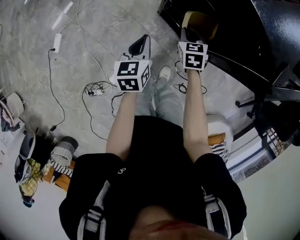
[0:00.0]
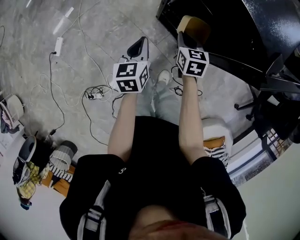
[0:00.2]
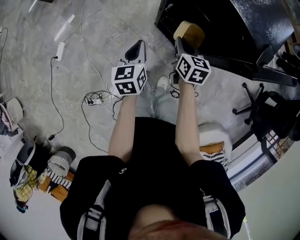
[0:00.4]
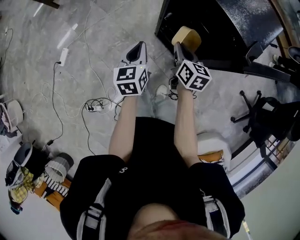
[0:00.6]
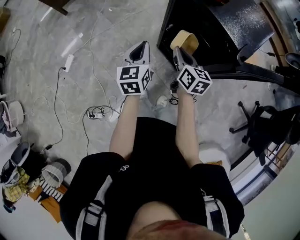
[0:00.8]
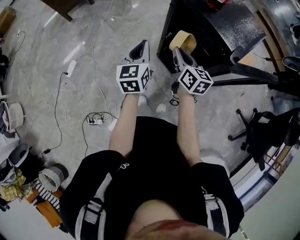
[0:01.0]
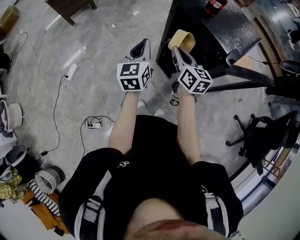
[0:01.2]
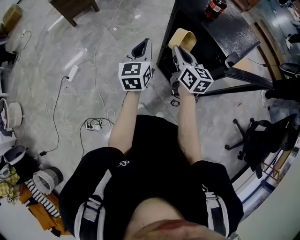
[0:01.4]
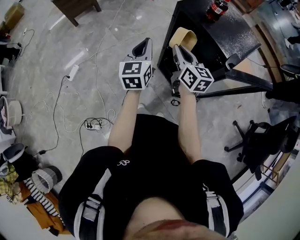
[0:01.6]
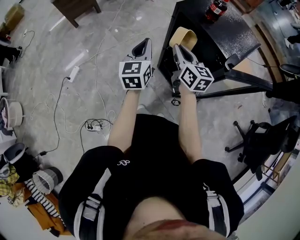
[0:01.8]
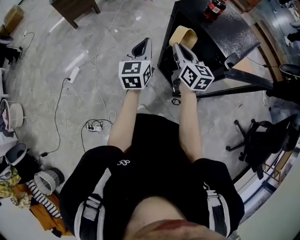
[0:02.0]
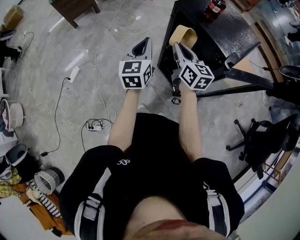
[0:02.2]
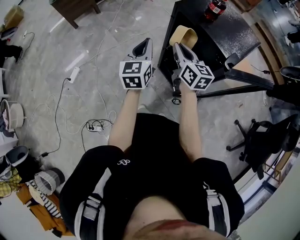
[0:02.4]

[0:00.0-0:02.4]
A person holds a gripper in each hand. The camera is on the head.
0:00.0 to 0:01.2: Both grippers move upward, about 25 cm. The left gripper rotates roughly 30 degrees. Meanwhile the right gripper tips its fingers upward by about 40 degrees.
0:01.2 to 0:02.4: The grippers move only a little.

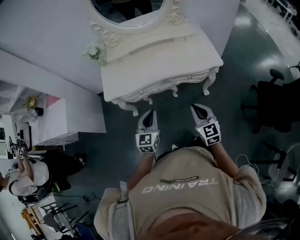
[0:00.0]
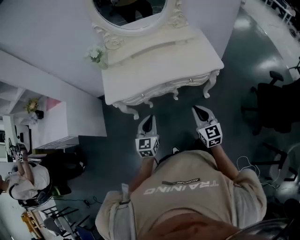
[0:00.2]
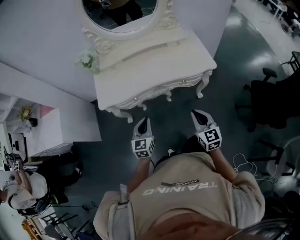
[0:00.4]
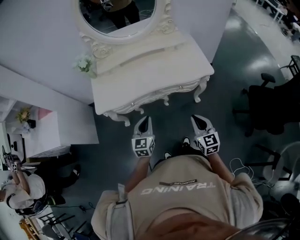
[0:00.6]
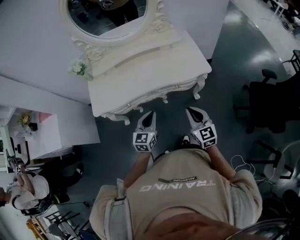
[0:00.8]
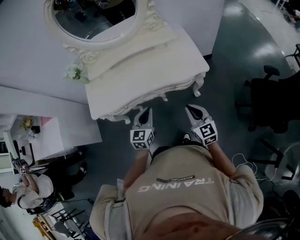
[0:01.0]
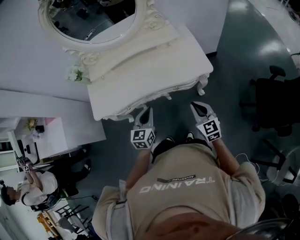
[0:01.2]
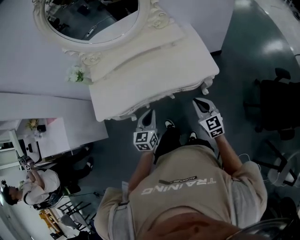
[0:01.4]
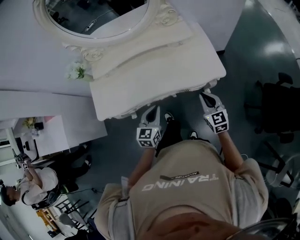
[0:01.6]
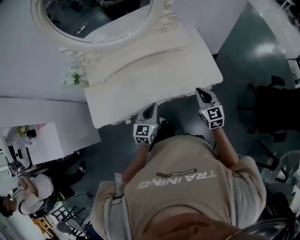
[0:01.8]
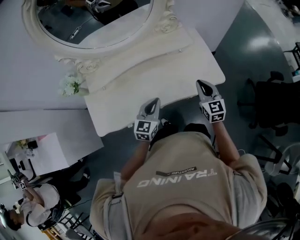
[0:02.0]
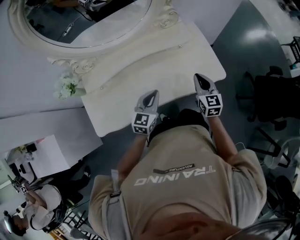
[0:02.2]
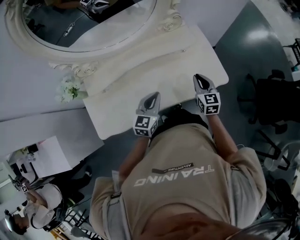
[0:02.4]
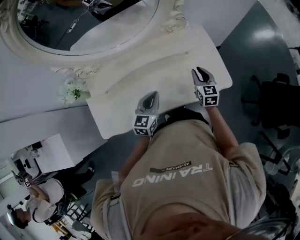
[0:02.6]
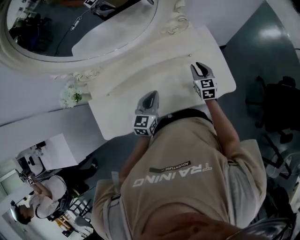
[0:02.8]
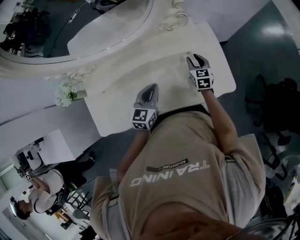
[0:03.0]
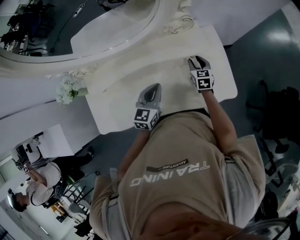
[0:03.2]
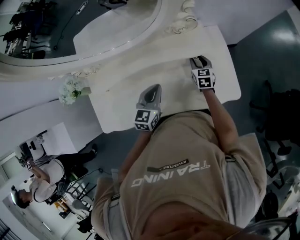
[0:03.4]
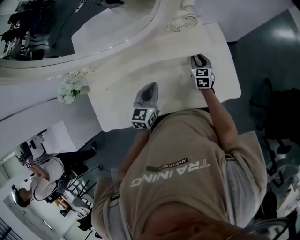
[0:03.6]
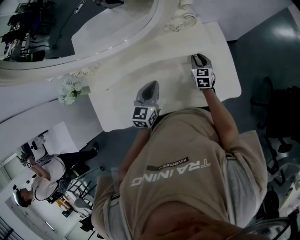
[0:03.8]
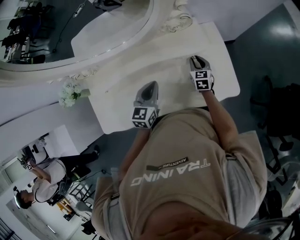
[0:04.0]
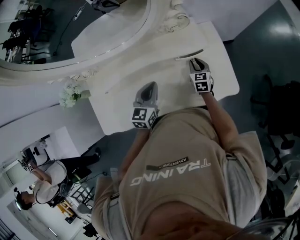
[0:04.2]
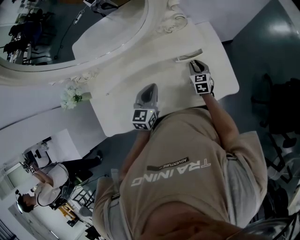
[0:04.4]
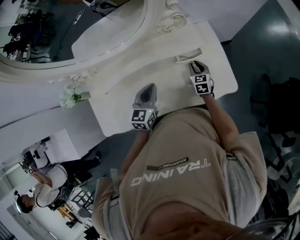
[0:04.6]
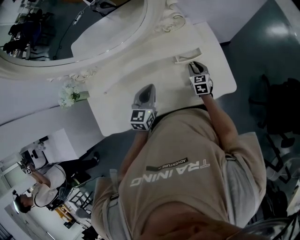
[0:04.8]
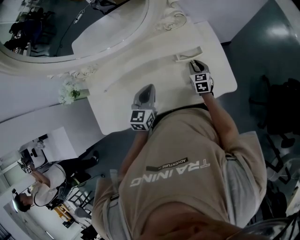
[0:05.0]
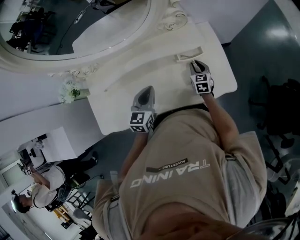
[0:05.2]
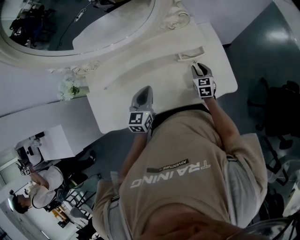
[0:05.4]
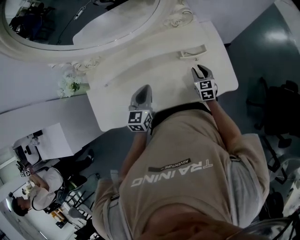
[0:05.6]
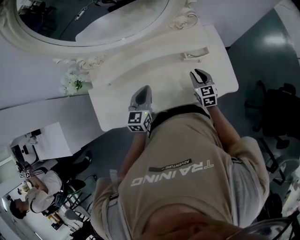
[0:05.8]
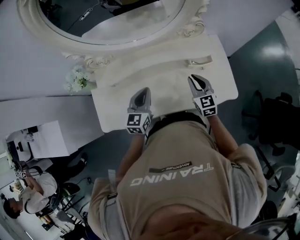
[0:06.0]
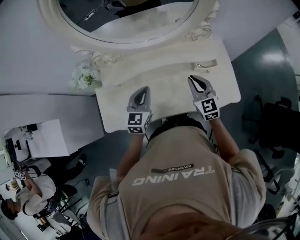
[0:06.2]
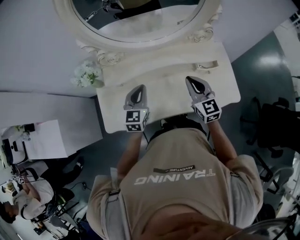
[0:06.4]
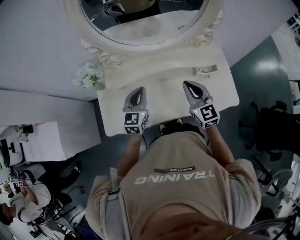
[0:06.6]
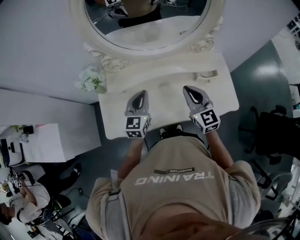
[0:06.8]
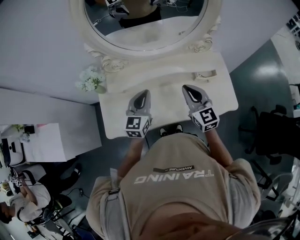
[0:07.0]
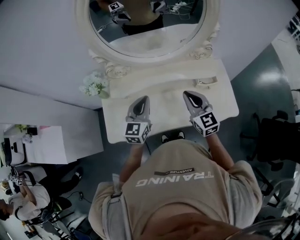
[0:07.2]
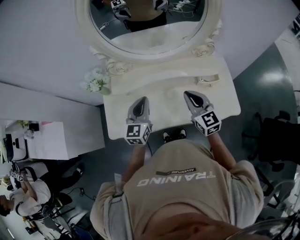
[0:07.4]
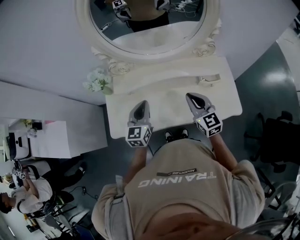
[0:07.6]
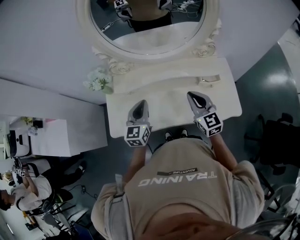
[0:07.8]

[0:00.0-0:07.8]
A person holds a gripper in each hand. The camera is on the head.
0:00.0 to 0:01.6: Both grippers travel together forward and to the right, approximately 25 cm.
0:01.6 to 0:03.2: The two grippers go some 35 cm forward. The right gripper opens.
0:03.2 to 0:04.6: There are only small adjustments of the grippers.
0:04.6 to 0:06.2: The right gripper moves upward, to the left and backward, some 30 cm, and swivels some 30 degrees; the left gripper travels to the left and upward by approximately 15 cm.
0:06.2 to 0:07.8: The left gripper moves to the left and upward, about 5 cm; the right gripper travels upward by about 5 cm.

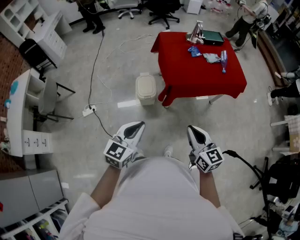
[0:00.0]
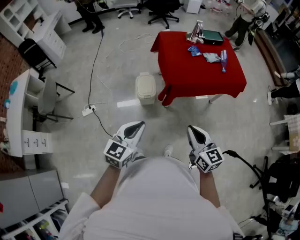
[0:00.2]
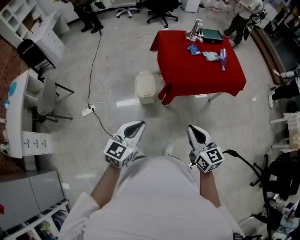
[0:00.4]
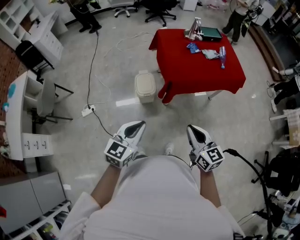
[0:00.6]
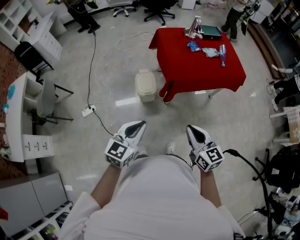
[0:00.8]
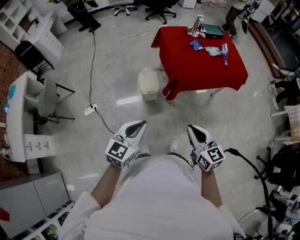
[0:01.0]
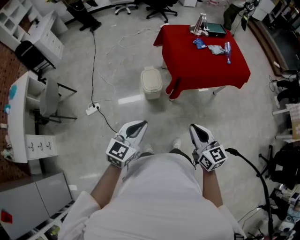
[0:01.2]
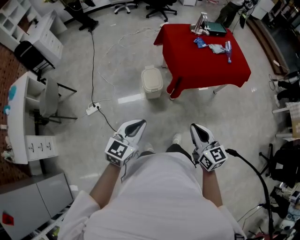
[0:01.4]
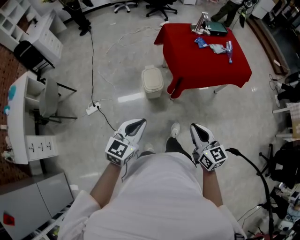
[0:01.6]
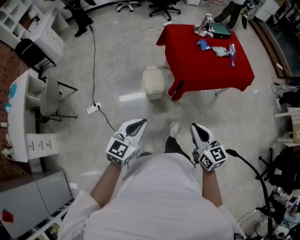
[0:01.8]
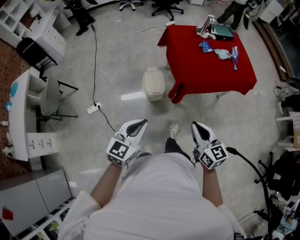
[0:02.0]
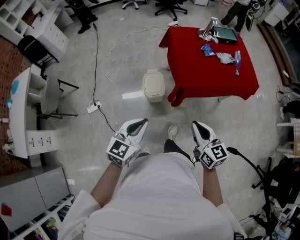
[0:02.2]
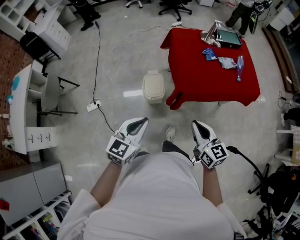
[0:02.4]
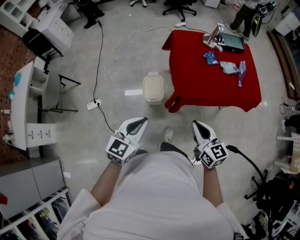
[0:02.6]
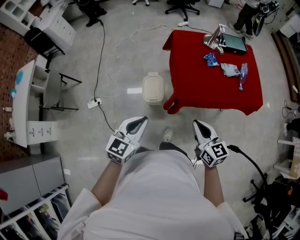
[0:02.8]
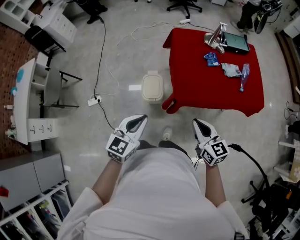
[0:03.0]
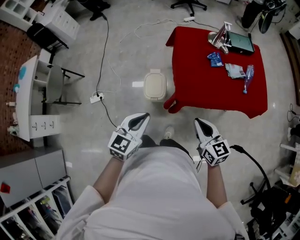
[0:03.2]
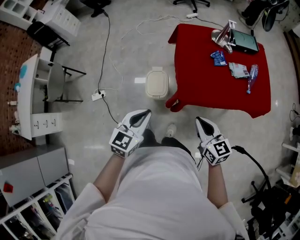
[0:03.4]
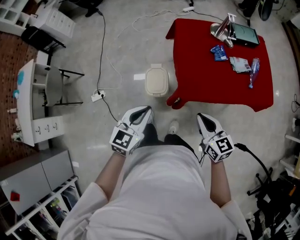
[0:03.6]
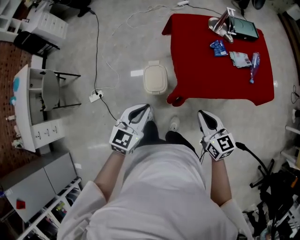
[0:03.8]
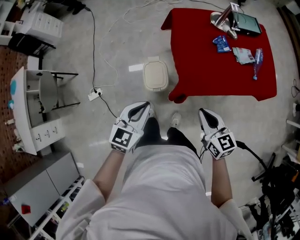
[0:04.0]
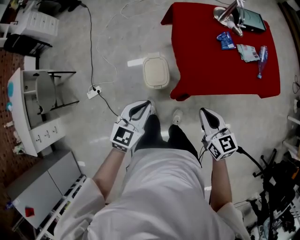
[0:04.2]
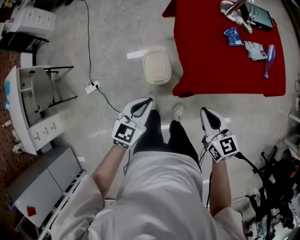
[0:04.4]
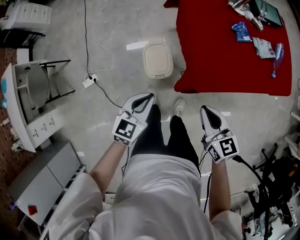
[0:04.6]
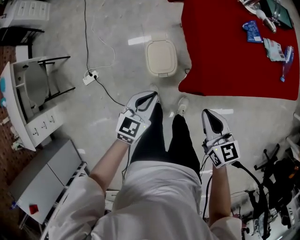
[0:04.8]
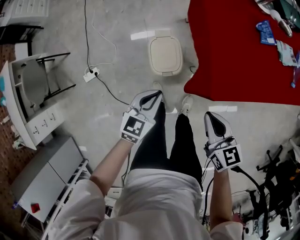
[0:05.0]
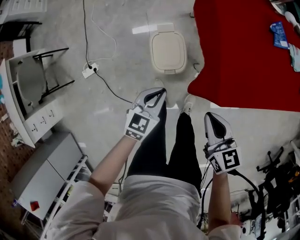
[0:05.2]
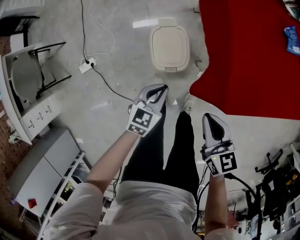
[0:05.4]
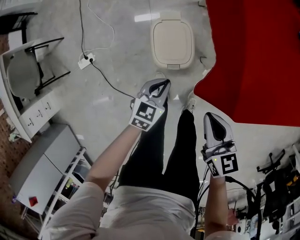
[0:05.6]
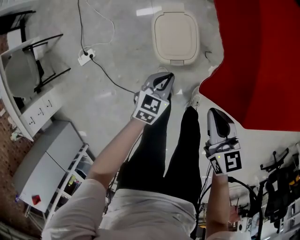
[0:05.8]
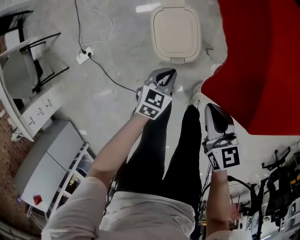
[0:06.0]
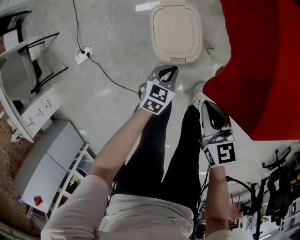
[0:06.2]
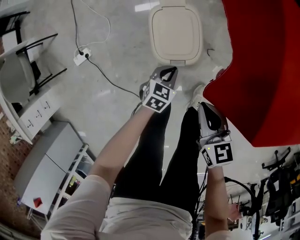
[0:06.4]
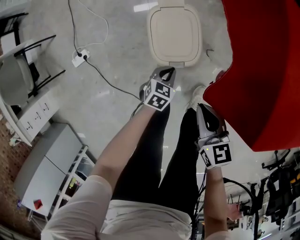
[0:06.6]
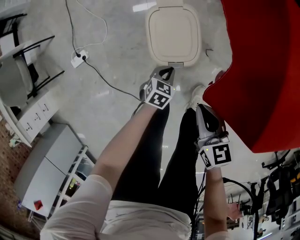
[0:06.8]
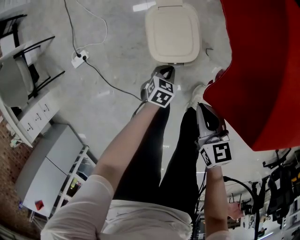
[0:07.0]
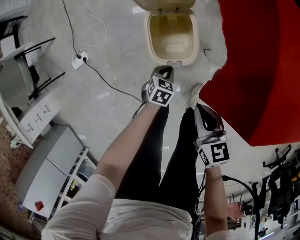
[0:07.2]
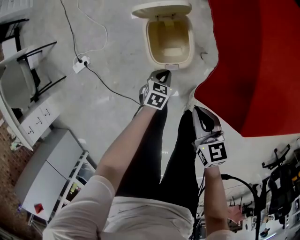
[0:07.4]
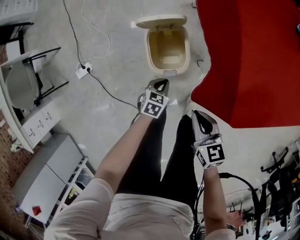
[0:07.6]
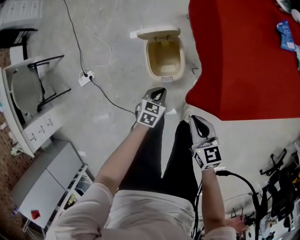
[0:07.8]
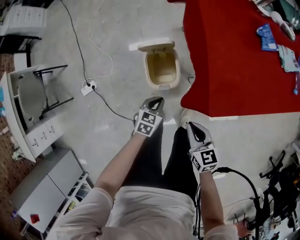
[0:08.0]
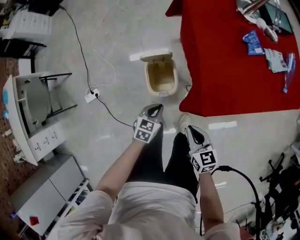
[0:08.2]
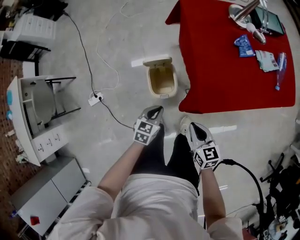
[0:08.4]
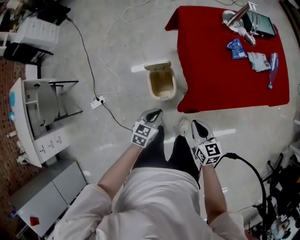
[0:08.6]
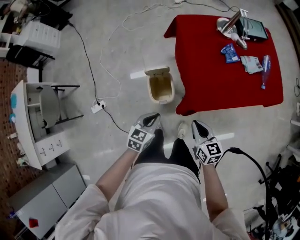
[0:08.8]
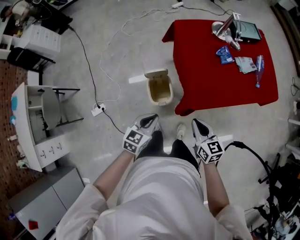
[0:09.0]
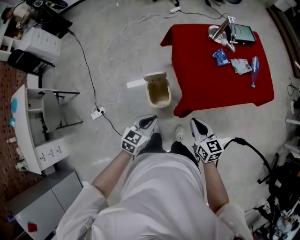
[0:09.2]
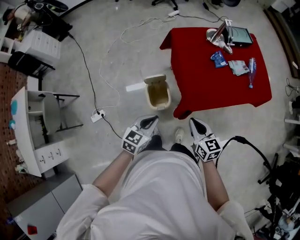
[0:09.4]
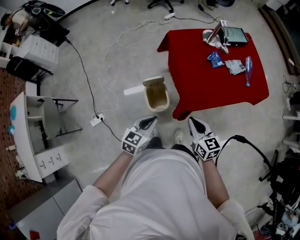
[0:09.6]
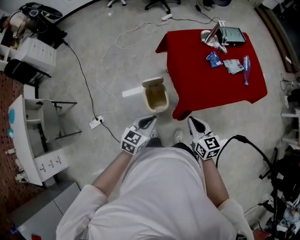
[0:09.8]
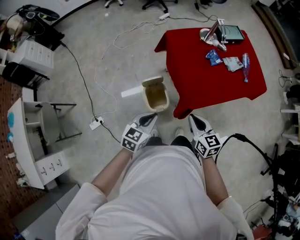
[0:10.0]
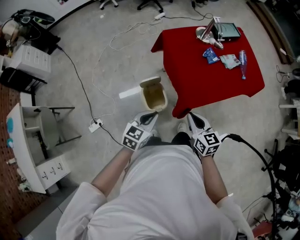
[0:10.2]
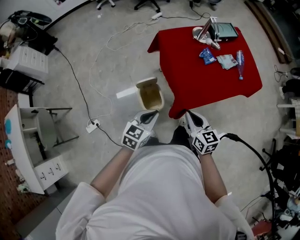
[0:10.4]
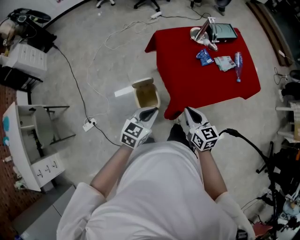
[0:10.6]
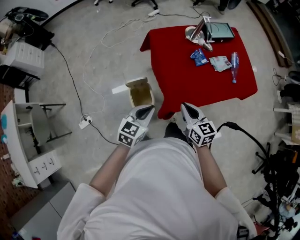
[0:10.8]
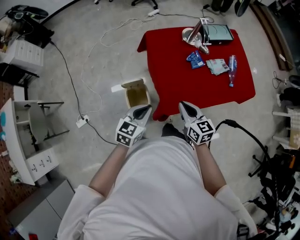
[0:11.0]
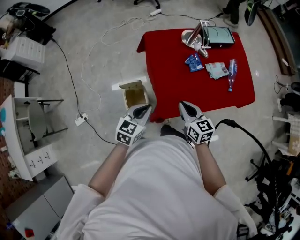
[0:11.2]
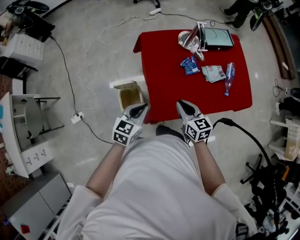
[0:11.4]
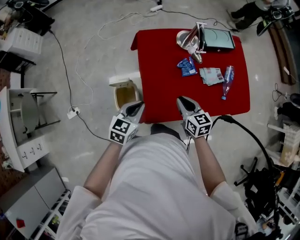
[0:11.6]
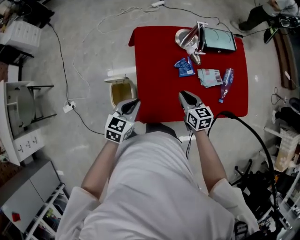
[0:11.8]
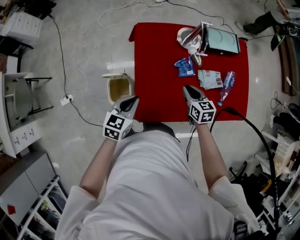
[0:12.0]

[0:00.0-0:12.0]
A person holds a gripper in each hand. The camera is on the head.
0:00.0 to 0:01.6: Both grippers move to the left, about 10 cm.
0:01.6 to 0:03.0: Both grippers travel together forward and to the right, some 30 cm.
0:03.0 to 0:04.4: The left gripper travels downward and forward by some 20 cm, while the right gripper heads downward, forward and to the left, covering about 15 cm.
0:04.4 to 0:06.0: Both grippers travel together downward, roughly 40 cm.
0:06.0 to 0:07.6: The left gripper goes about 5 cm downward.
0:07.6 to 0:09.0: The left gripper moves upward, approximately 50 cm, and rotates roughly 30 degrees, while the right gripper travels upward by roughly 30 cm.
0:09.0 to 0:10.4: Both grippers travel together upward, roughly 5 cm.
0:10.4 to 0:12.0: The left gripper travels forward and to the right by some 25 cm, and changes its angle by about 20 degrees. Meanwhile the right gripper moves forward, to the right and downward, approximately 40 cm.

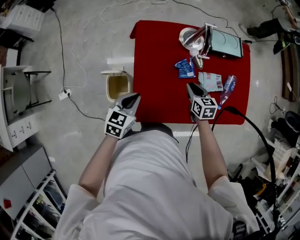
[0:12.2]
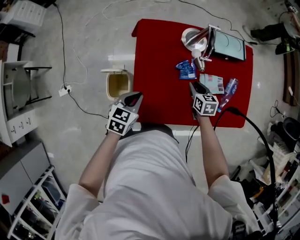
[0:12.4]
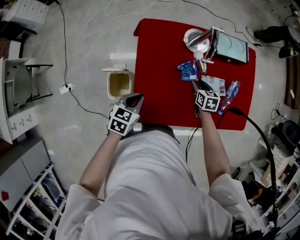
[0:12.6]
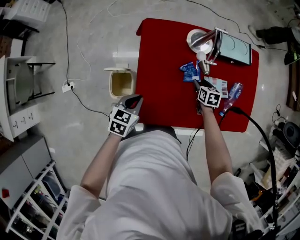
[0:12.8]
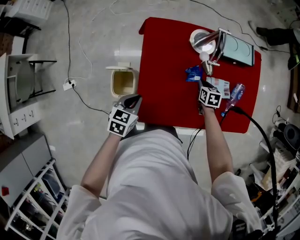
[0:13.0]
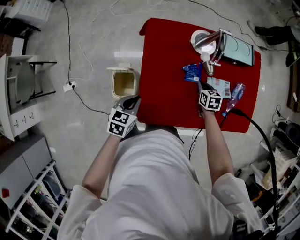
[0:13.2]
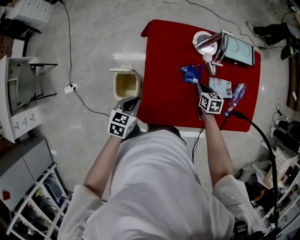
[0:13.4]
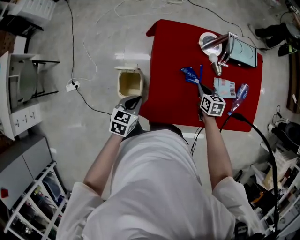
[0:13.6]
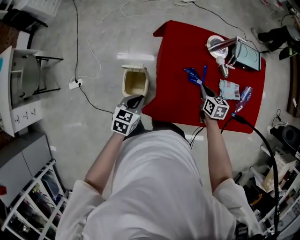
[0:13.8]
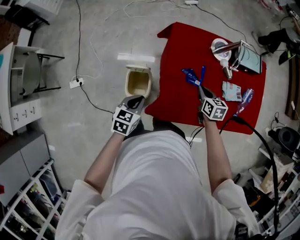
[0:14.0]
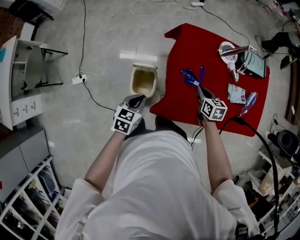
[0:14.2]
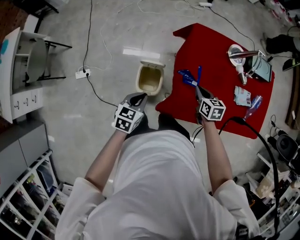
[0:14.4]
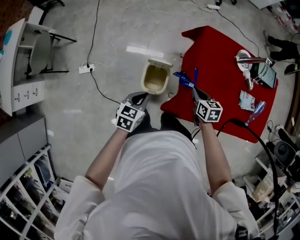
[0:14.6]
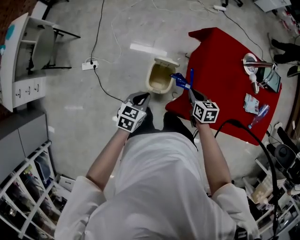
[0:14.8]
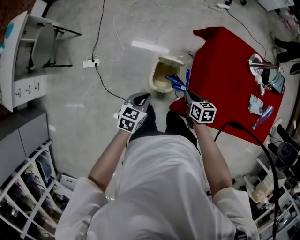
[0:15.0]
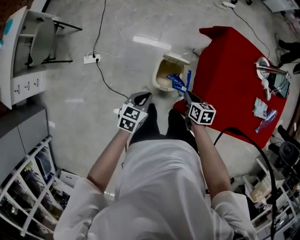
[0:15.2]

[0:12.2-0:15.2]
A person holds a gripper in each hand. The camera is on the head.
0:12.2 to 0:13.8: The right gripper moves to the left, approximately 5 cm, and opens, then closes again. The left gripper travels to the left by some 10 cm.
0:13.8 to 0:15.2: The right gripper is displaced to the left by about 35 cm. Meanwhile the left gripper goes some 20 cm to the left.
